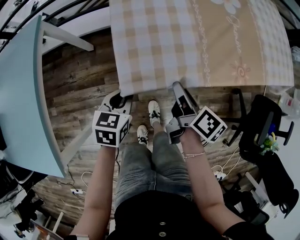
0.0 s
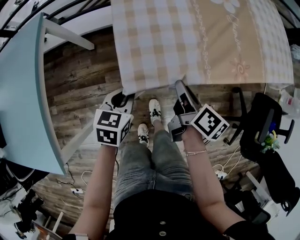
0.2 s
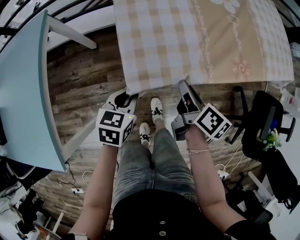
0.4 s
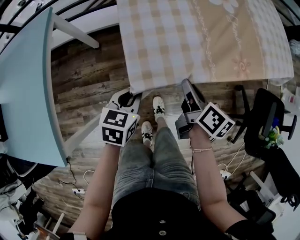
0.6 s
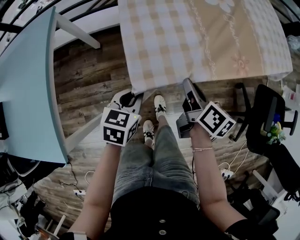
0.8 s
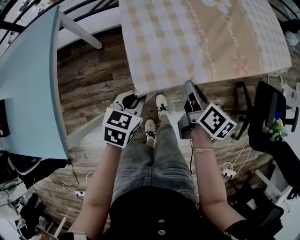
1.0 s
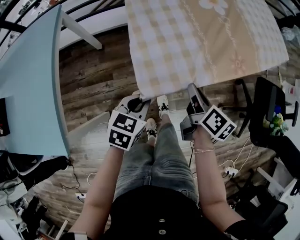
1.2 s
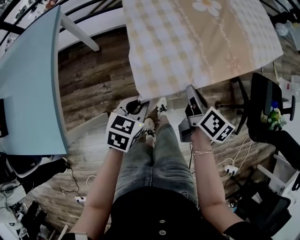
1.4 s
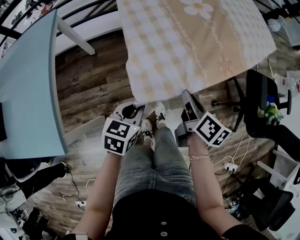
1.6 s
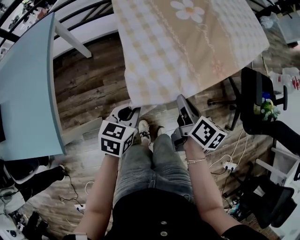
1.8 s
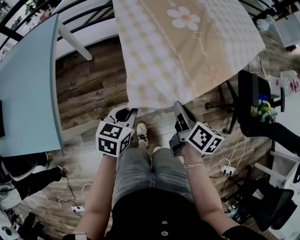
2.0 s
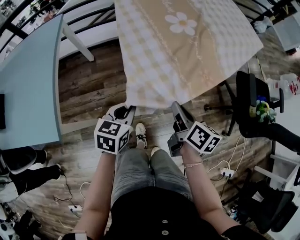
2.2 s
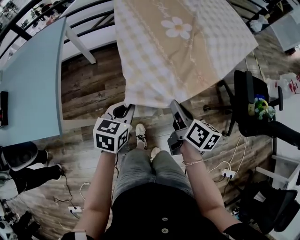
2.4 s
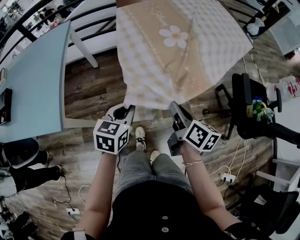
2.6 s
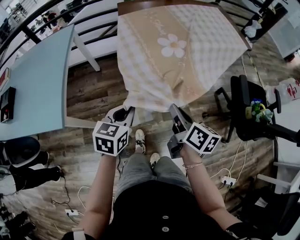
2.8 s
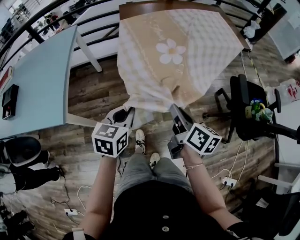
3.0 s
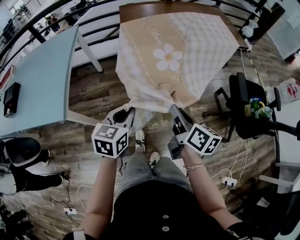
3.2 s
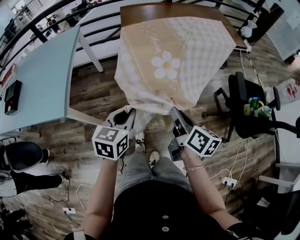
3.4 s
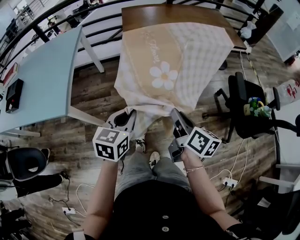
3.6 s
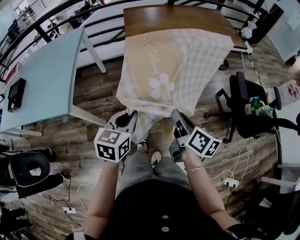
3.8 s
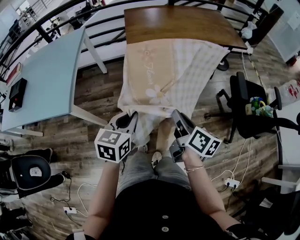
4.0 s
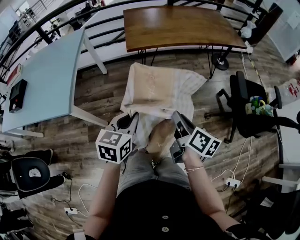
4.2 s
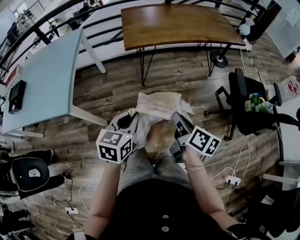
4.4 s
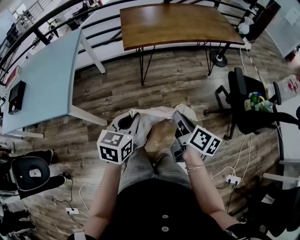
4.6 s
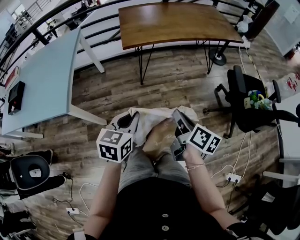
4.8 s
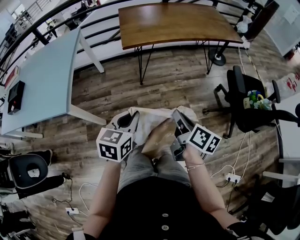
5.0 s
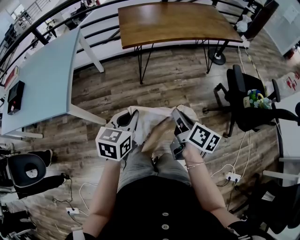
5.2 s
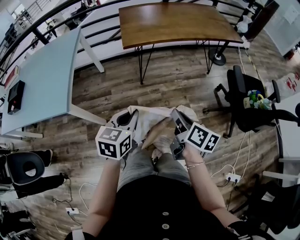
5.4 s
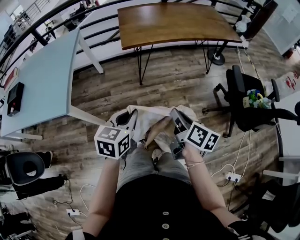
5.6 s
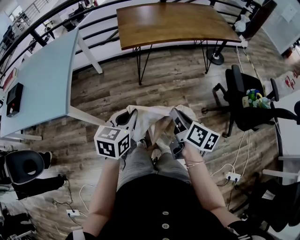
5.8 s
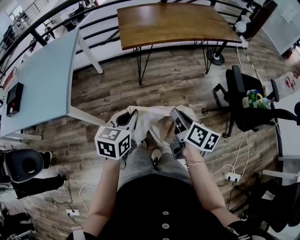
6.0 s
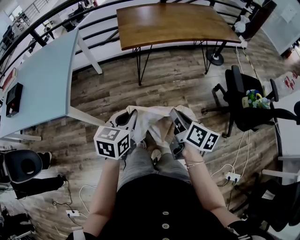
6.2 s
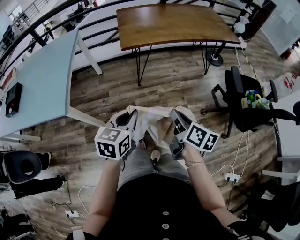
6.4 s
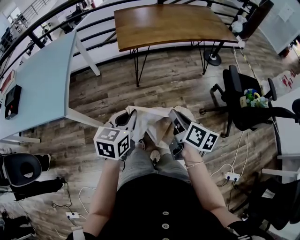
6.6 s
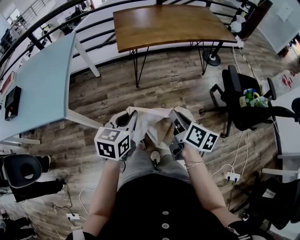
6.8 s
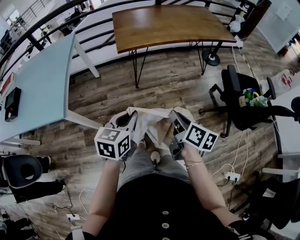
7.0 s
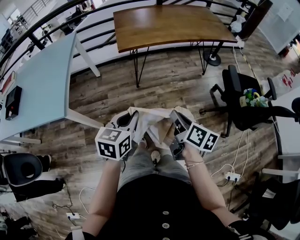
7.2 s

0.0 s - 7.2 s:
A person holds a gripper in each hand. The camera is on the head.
0.0 s - 1.4 s: The grippers both shift backward by about 15 cm.
1.4 s - 2.8 s: Both grippers travel together backward and upward, approximately 20 cm.
2.8 s - 4.4 s: Both grippers travel together backward, some 10 cm.
4.4 s - 5.8 s: Both grippers stay about where they are.
5.8 s - 7.2 s: The grippers stay close to where they were, moving slightly.

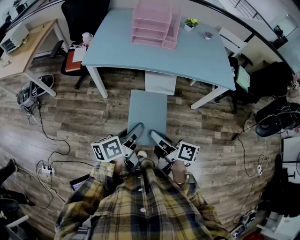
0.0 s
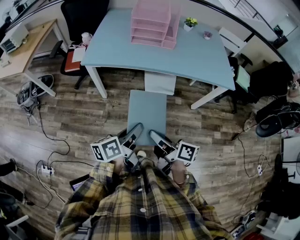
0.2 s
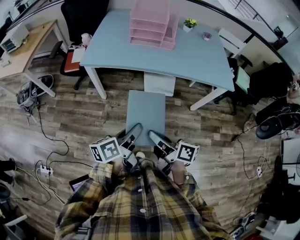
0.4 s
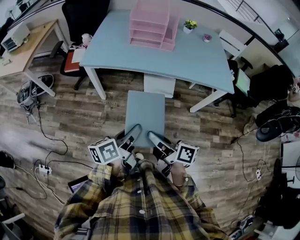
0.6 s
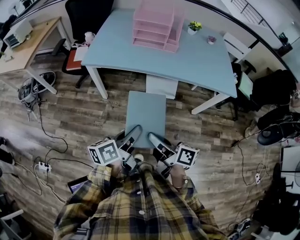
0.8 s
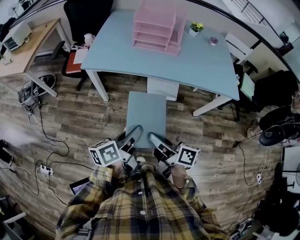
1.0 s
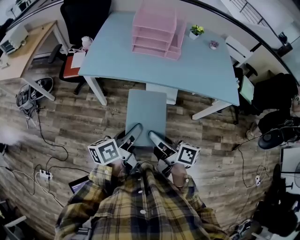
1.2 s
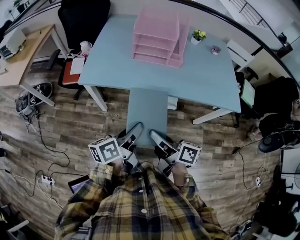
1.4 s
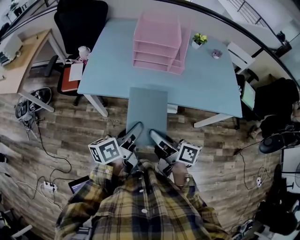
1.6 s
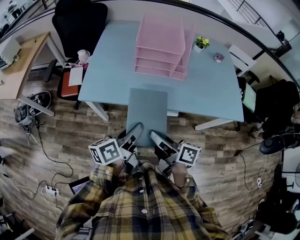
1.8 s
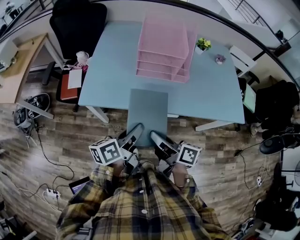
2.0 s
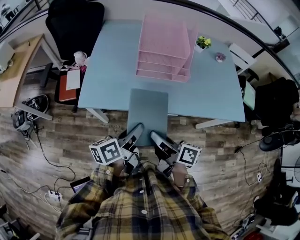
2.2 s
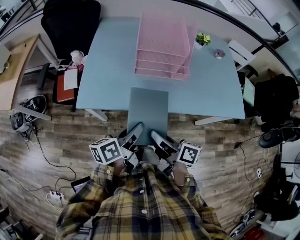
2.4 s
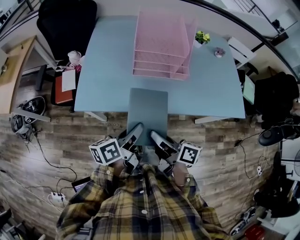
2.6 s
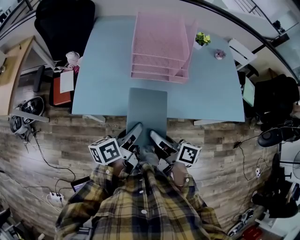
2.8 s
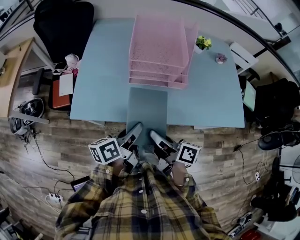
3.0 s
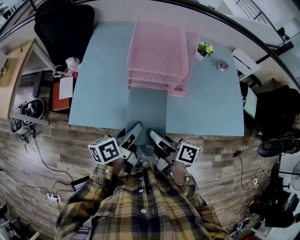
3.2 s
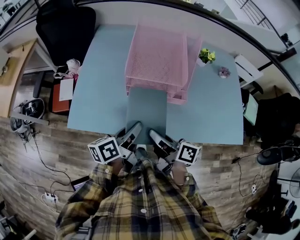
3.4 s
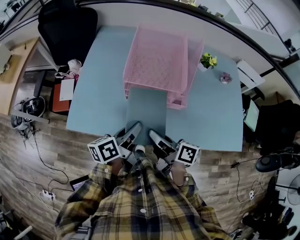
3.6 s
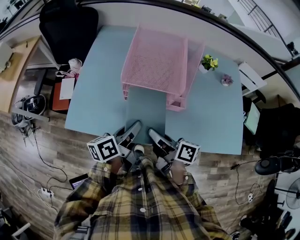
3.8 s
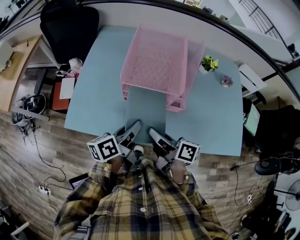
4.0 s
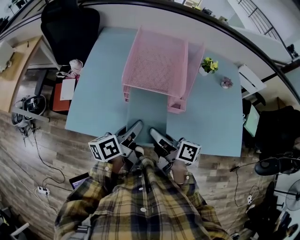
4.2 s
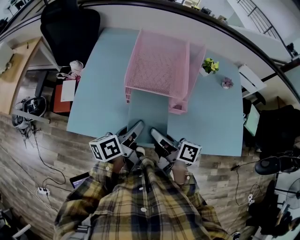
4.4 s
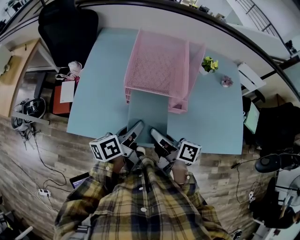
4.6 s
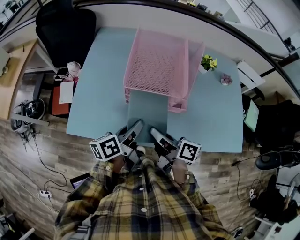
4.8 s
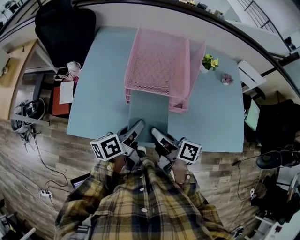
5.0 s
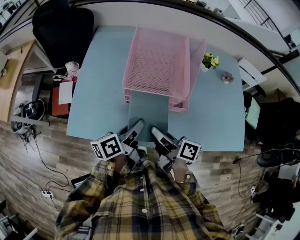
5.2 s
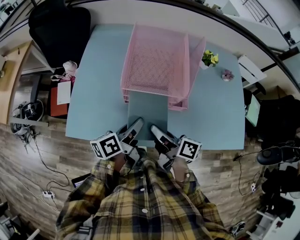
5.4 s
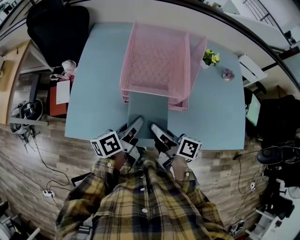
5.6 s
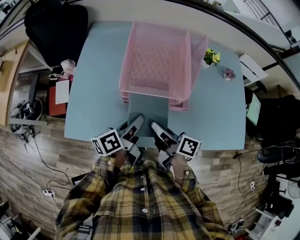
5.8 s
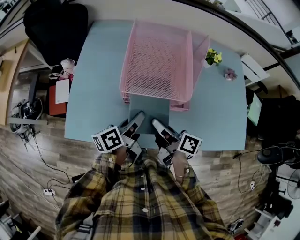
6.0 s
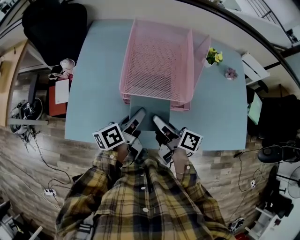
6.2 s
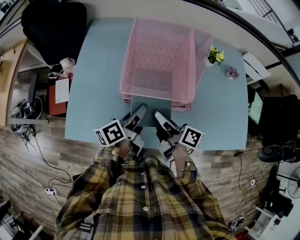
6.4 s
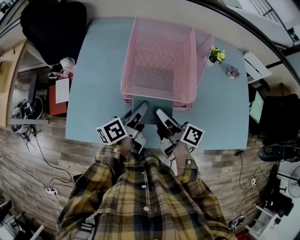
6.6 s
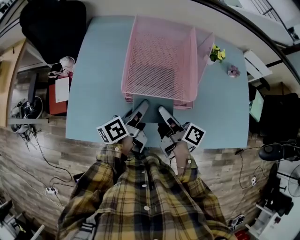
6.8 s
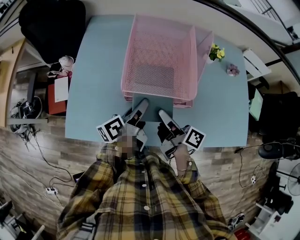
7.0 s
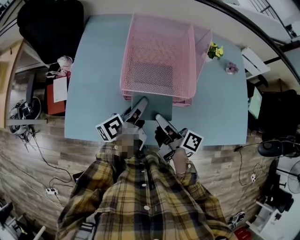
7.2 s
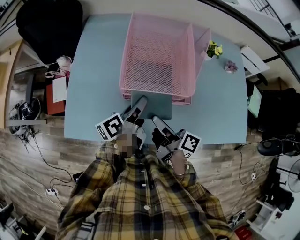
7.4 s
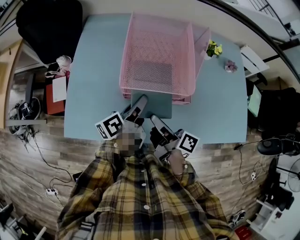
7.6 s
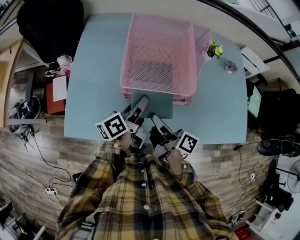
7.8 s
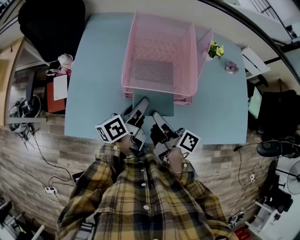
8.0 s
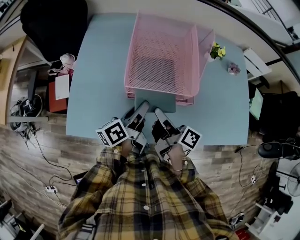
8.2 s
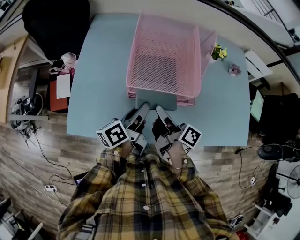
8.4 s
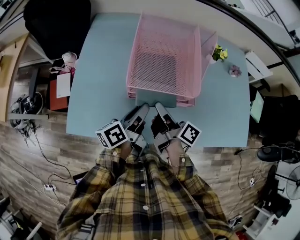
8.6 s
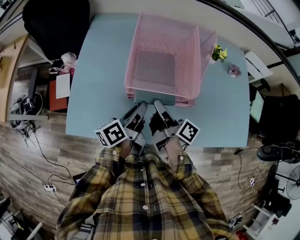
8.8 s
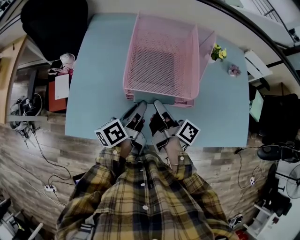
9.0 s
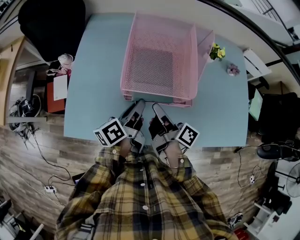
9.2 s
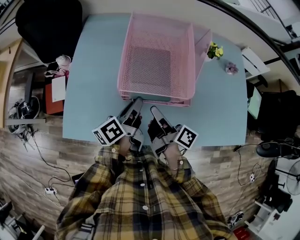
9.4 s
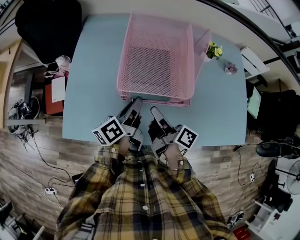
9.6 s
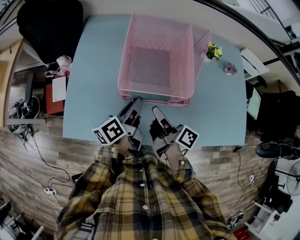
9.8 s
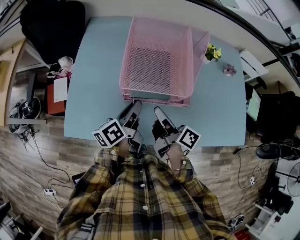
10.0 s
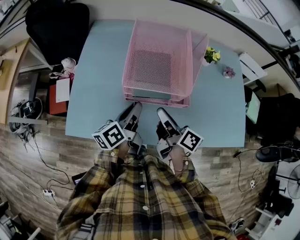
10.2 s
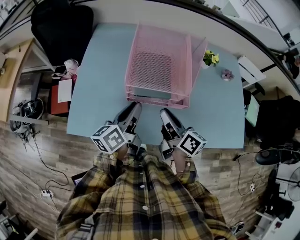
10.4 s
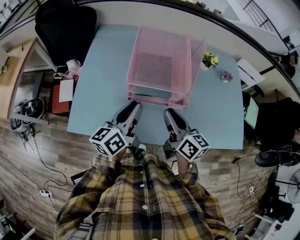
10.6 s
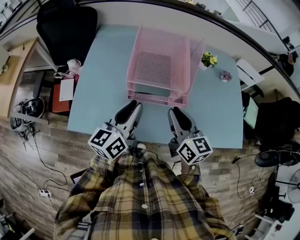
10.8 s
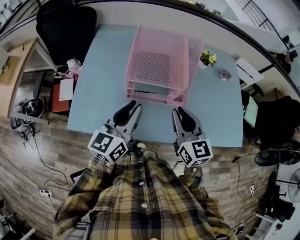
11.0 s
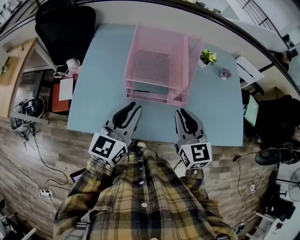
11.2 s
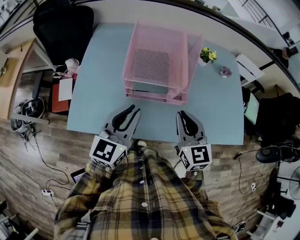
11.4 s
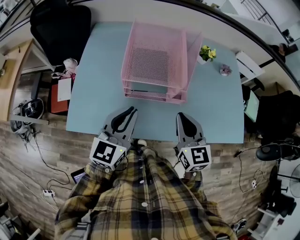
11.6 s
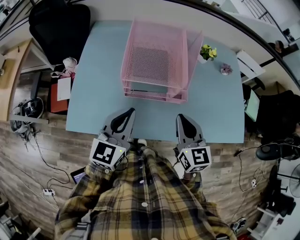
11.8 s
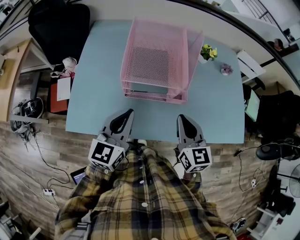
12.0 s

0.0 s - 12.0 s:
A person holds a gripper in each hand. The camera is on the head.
0.0 s - 1.6 s: The grippers both shift forward by roughly 20 cm.
1.6 s - 3.0 s: Both grippers move forward, about 15 cm.
3.0 s - 4.4 s: Both grippers move forward, roughly 10 cm.
4.4 s - 6.0 s: Both grippers travel together forward, roughly 5 cm.
6.0 s - 7.6 s: The grippers make only small movements.
7.6 s - 9.0 s: The right gripper shifts about 5 cm forward.
9.0 s - 10.4 s: The right gripper shifts by approximately 5 cm, and rotates roughly 30 degrees. The left gripper changes place by approximately 5 cm.
10.4 s - 12.0 s: The right gripper goes roughly 5 cm to the right, and rotates around the line of its fingers by about 50 degrees, counterclockwise from behind. Meanwhile the left gripper travels backward by about 5 cm, and rolls clockwise, seen from behind, by some 40 degrees.

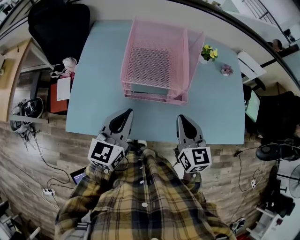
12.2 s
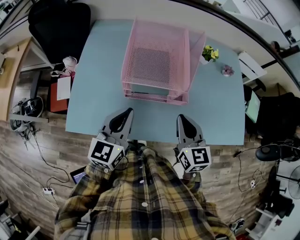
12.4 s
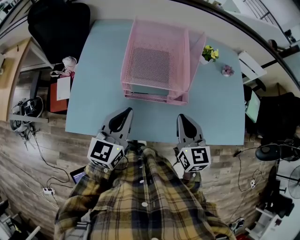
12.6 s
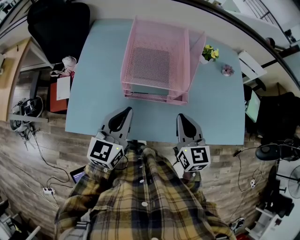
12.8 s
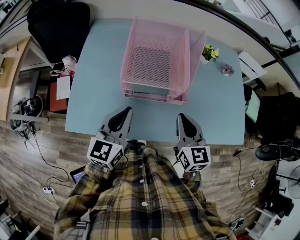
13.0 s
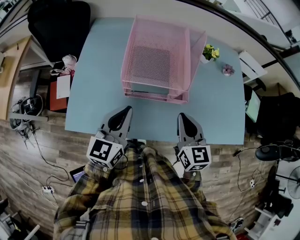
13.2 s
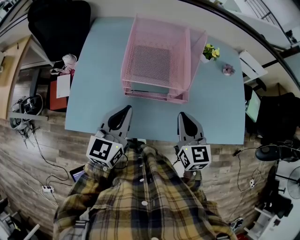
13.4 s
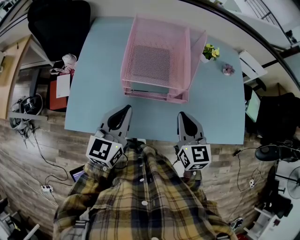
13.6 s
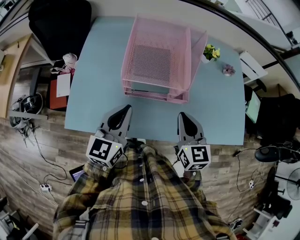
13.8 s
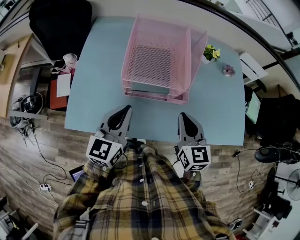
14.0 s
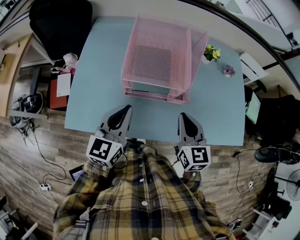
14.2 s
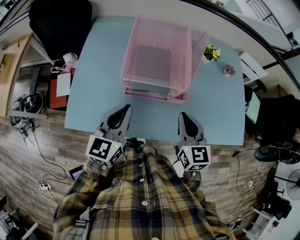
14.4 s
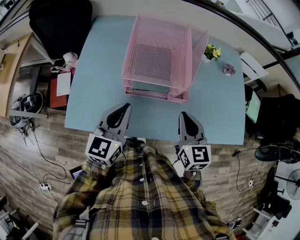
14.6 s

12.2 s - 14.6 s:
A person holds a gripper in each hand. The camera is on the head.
12.2 s - 13.4 s: Both grippers stay put.
13.4 s - 14.6 s: Neither gripper changes place.

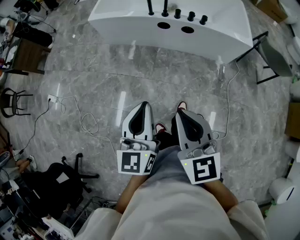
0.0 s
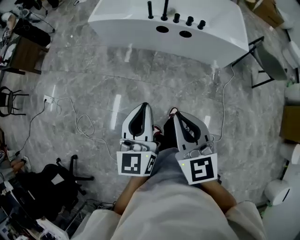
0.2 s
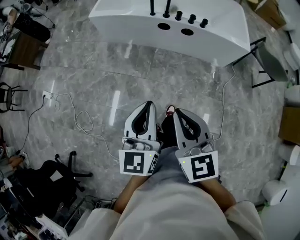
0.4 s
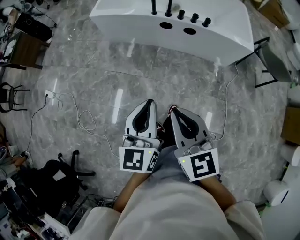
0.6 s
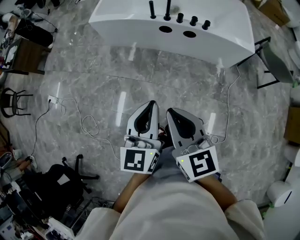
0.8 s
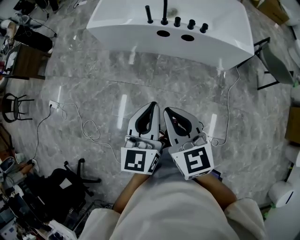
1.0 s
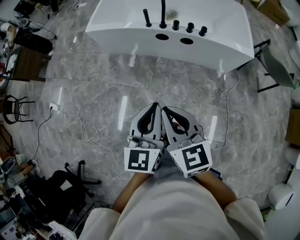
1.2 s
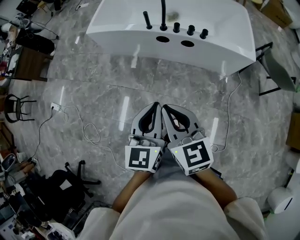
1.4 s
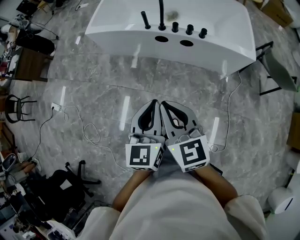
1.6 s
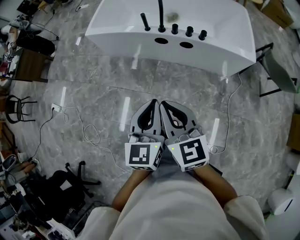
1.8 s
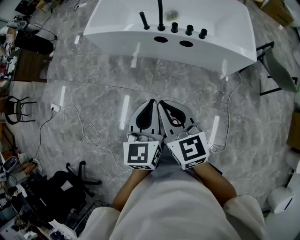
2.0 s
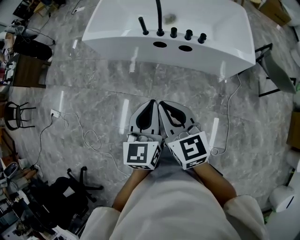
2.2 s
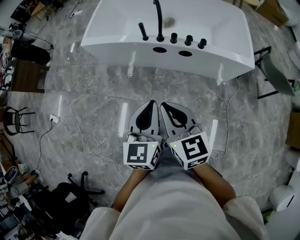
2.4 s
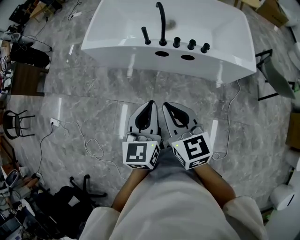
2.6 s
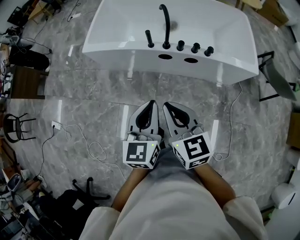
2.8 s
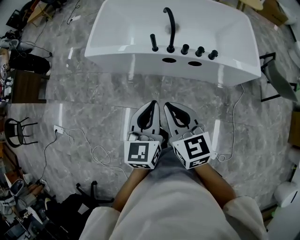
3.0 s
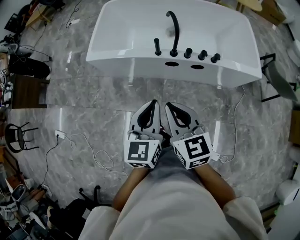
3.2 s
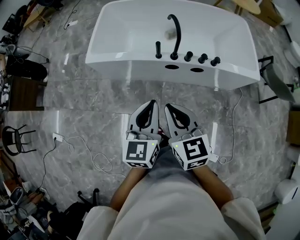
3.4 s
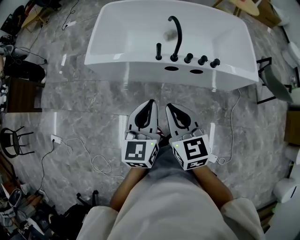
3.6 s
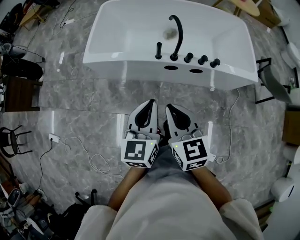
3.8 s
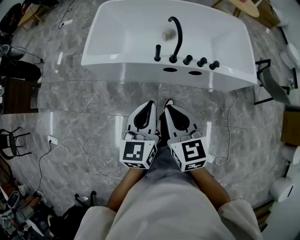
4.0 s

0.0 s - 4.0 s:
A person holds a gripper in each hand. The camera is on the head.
0.0 s - 1.4 s: The left gripper is displaced forward and to the right by approximately 15 cm; the right gripper is displaced forward by roughly 15 cm.
1.4 s - 2.6 s: Both grippers move forward, about 15 cm.
2.6 s - 4.0 s: The grippers both shift forward and to the left by about 20 cm.
